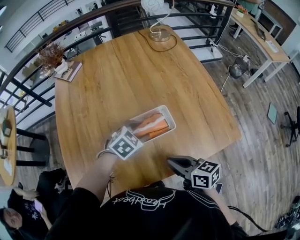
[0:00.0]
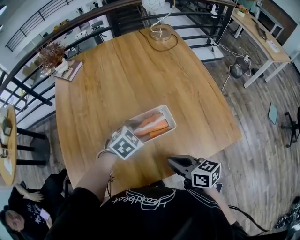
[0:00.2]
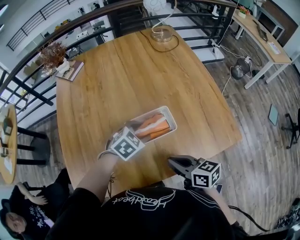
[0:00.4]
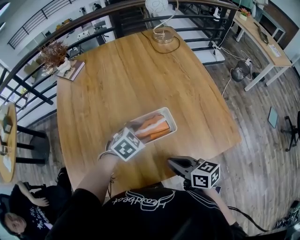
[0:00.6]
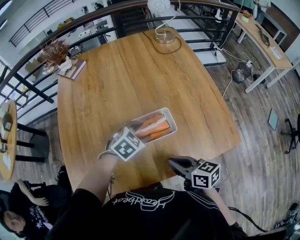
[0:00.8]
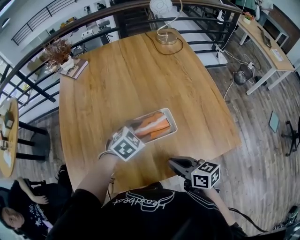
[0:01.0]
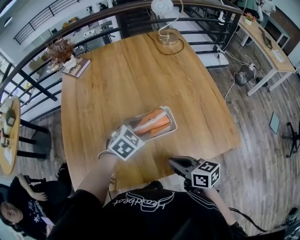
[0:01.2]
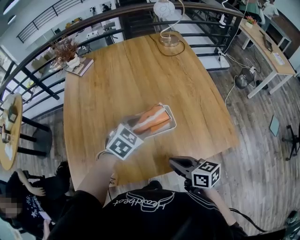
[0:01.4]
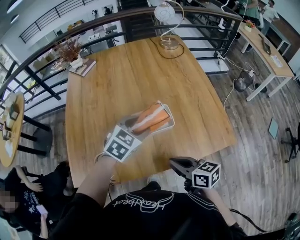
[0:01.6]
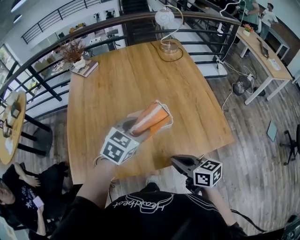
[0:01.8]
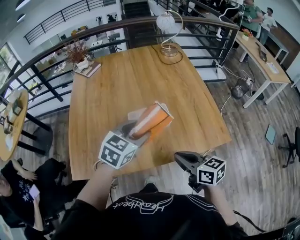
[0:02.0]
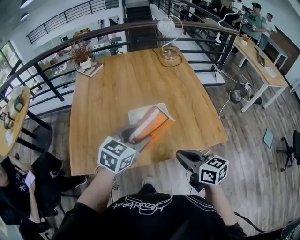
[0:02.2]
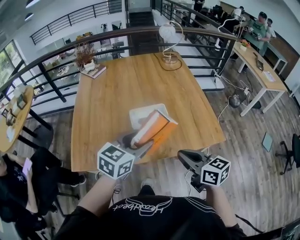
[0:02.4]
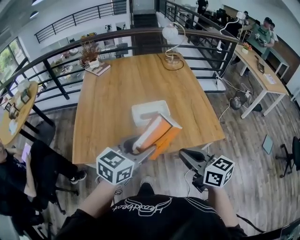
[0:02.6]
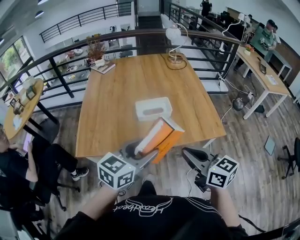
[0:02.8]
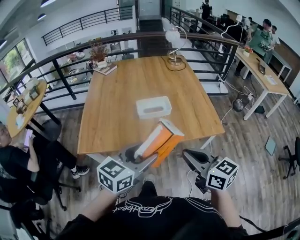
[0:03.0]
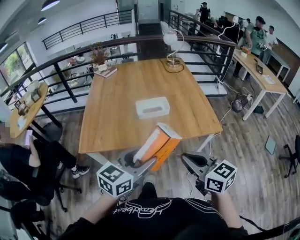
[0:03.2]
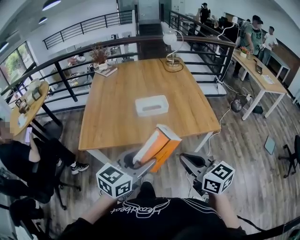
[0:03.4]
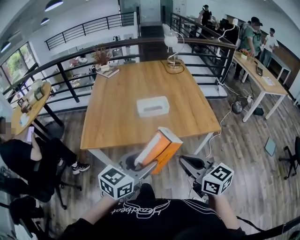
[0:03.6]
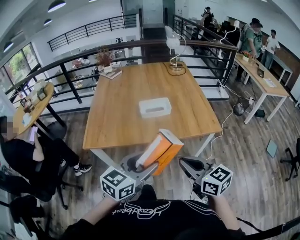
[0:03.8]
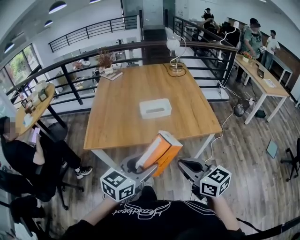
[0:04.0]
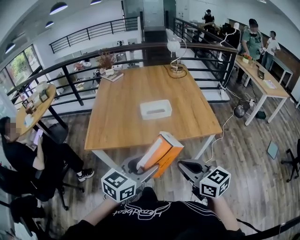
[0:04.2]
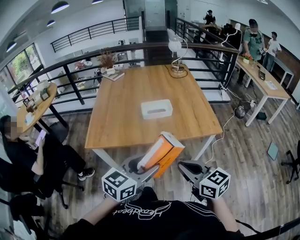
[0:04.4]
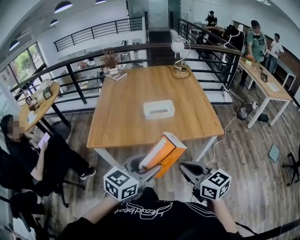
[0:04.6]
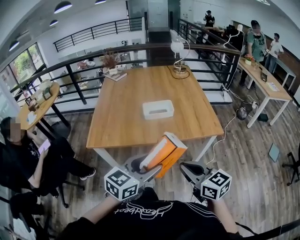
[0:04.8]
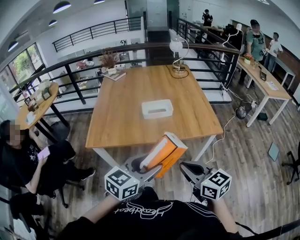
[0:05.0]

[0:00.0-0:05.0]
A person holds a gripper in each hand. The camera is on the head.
0:00.0 to 0:01.6: The left gripper moves upward, about 10 cm; the right gripper travels backward by some 5 cm.
0:01.6 to 0:03.4: The left gripper goes roughly 50 cm backward, and turns by about 30 degrees, while the right gripper moves backward and upward, some 35 cm, and rotates about 30 degrees.
0:03.4 to 0:05.0: Both grippers travel together backward, roughly 5 cm.

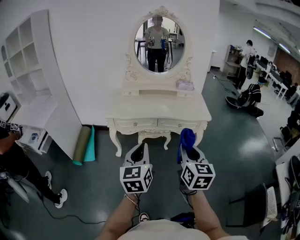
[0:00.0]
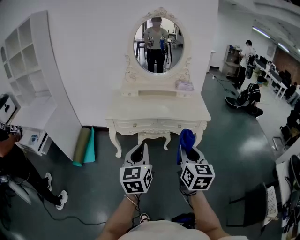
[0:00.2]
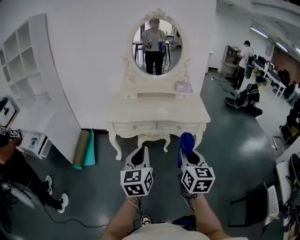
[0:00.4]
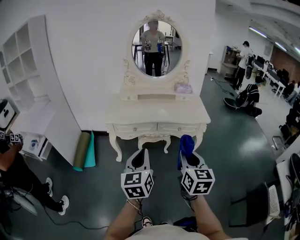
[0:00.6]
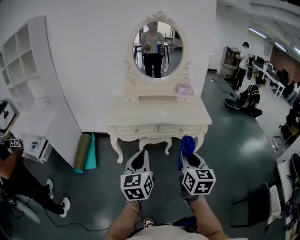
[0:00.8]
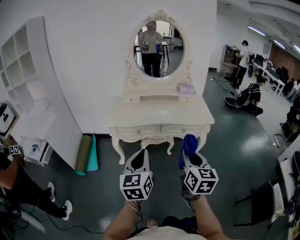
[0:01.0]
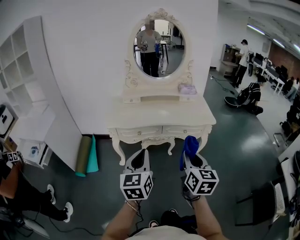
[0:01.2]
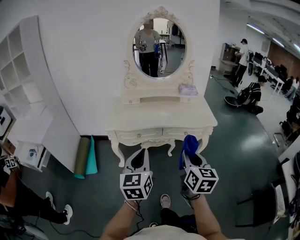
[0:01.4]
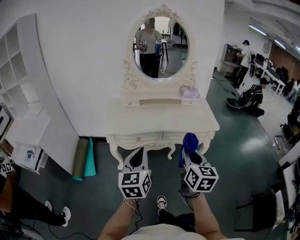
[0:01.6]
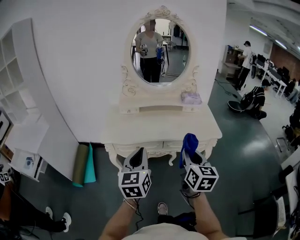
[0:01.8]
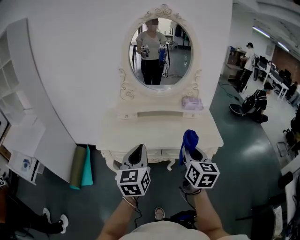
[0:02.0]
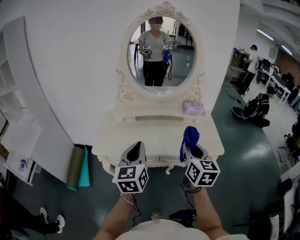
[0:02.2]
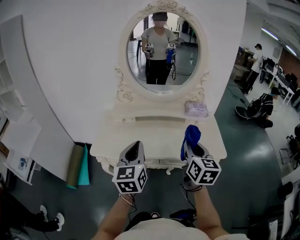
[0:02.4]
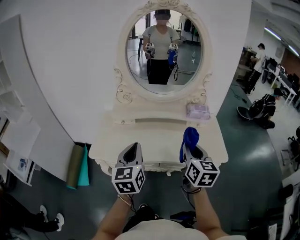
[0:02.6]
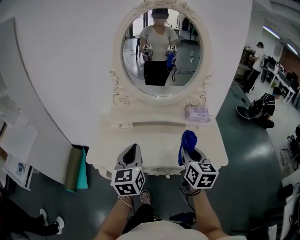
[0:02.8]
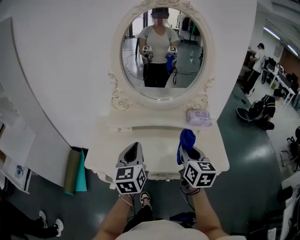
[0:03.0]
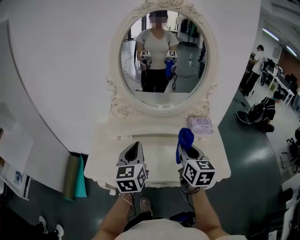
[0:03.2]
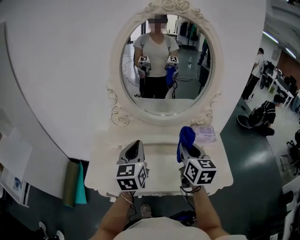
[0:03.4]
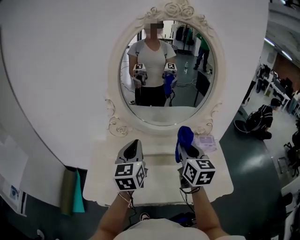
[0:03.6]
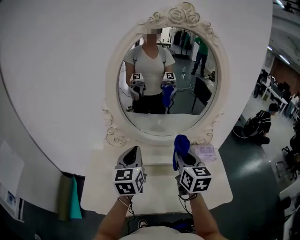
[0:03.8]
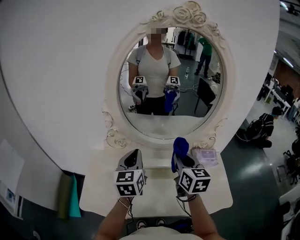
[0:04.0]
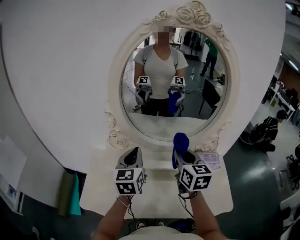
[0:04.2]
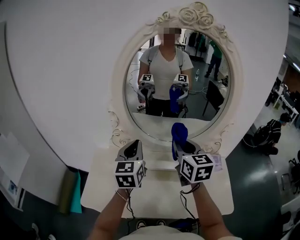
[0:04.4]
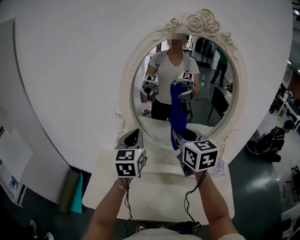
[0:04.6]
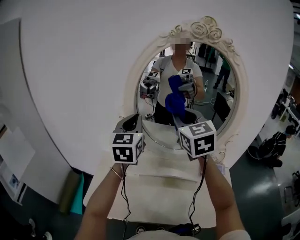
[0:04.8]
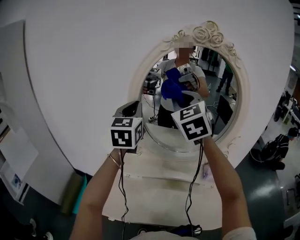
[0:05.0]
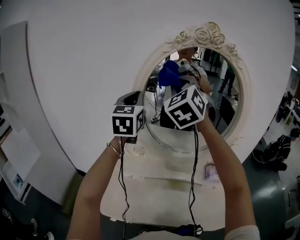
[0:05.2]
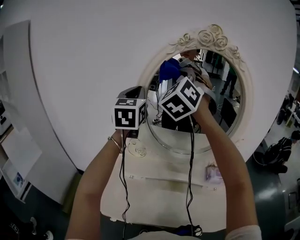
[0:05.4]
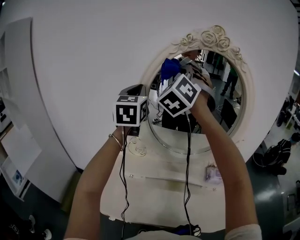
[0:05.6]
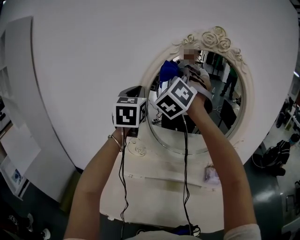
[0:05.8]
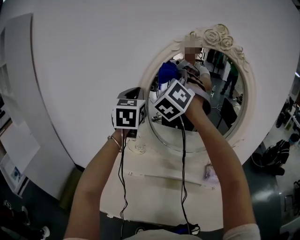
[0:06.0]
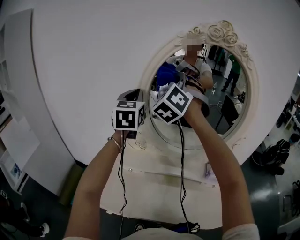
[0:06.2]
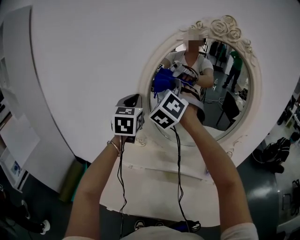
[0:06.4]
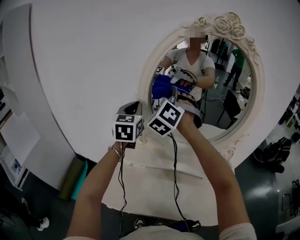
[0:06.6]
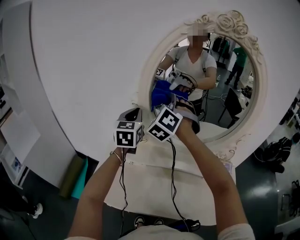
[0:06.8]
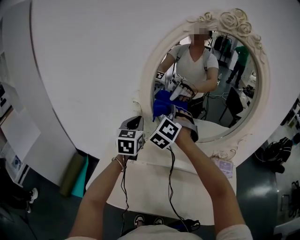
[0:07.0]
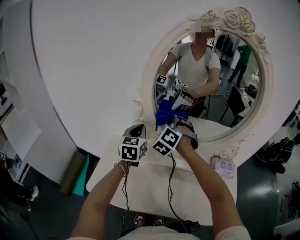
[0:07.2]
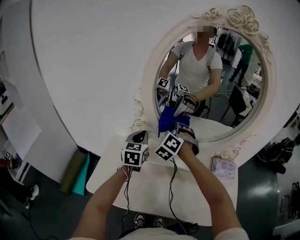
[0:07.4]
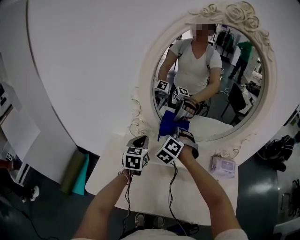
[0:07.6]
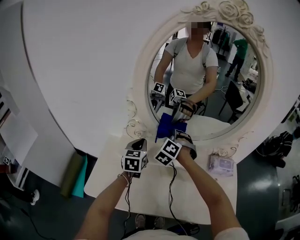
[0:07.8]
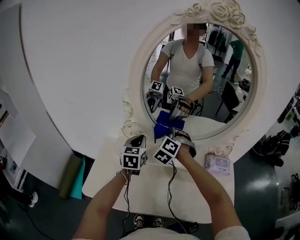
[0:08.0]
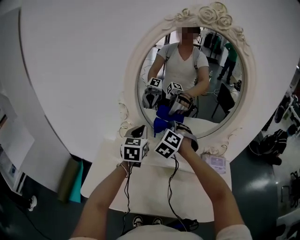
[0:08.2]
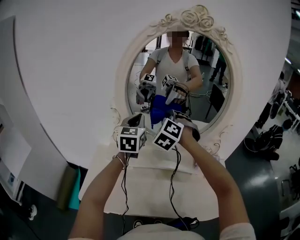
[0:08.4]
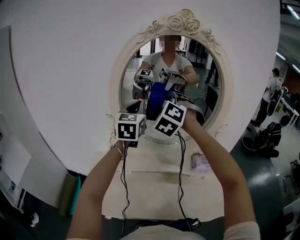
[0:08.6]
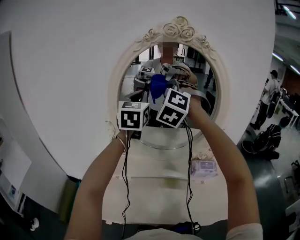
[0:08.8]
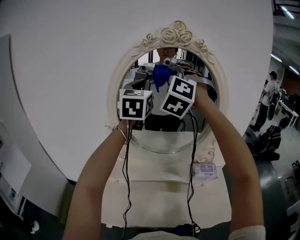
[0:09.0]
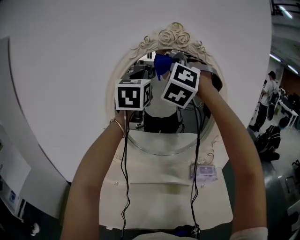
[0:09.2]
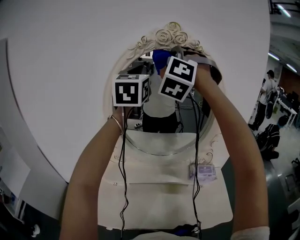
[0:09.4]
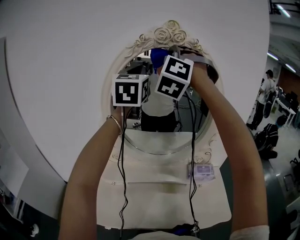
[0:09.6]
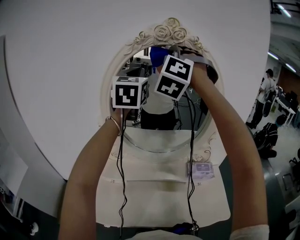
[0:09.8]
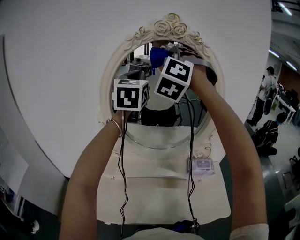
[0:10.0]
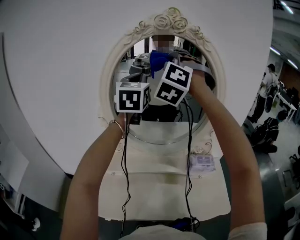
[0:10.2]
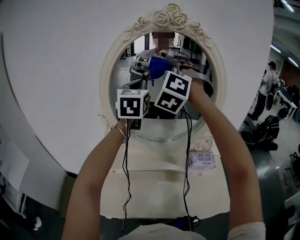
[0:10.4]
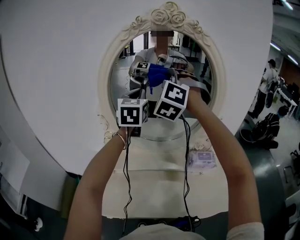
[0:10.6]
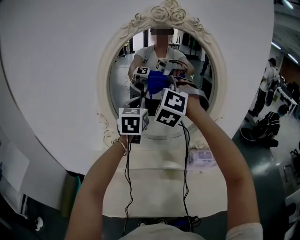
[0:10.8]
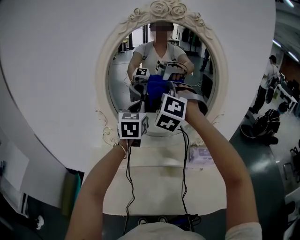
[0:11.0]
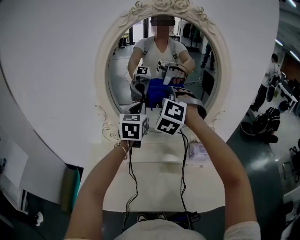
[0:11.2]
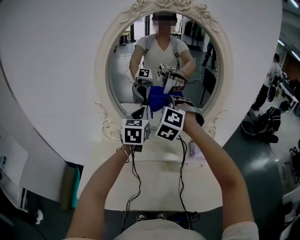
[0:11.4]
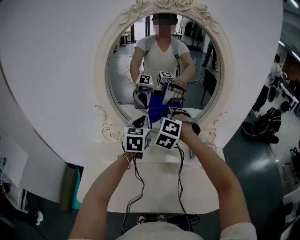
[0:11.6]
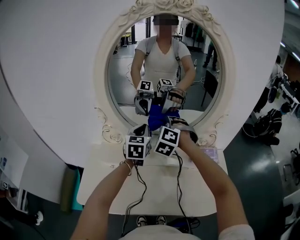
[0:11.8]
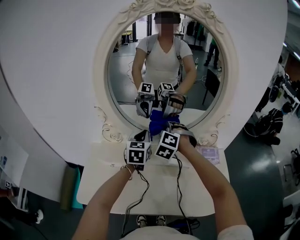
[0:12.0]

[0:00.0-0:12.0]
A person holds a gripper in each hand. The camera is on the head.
0:00.0 to 0:01.6: The right gripper shifts about 10 cm forward, while the left gripper travels forward and to the left by roughly 15 cm.
0:01.6 to 0:03.0: Both grippers travel together forward, some 35 cm.
0:03.0 to 0:04.4: Both grippers travel together forward, some 25 cm.
0:04.4 to 0:06.0: The right gripper heads upward, to the left and forward, covering roughly 30 cm, and rolls counterclockwise, seen from behind, by some 70 degrees. The left gripper goes approximately 25 cm upward, forward and to the left.
0:06.0 to 0:07.6: The two grippers go roughly 35 cm downward. The right gripper tilts its fingers approximately 30 degrees downward. The left gripper changes its angle by approximately 20 degrees.
0:07.6 to 0:09.0: The grippers both shift upward by roughly 40 cm. The right gripper changes its angle by about 30 degrees, while the left gripper rotates roughly 30 degrees.
0:09.0 to 0:10.4: The left gripper heads downward, covering approximately 5 cm. Meanwhile the right gripper travels upward and back again, approximately 10 cm each way.
0:10.4 to 0:12.0: The two grippers go some 35 cm downward. The left gripper changes its angle by some 20 degrees; the right gripper angles its fingers downward, by roughly 30 degrees.

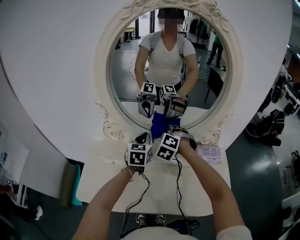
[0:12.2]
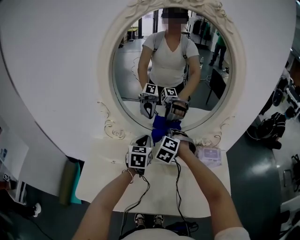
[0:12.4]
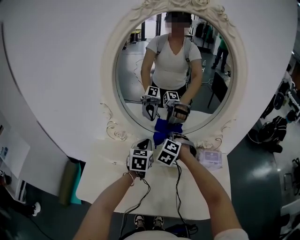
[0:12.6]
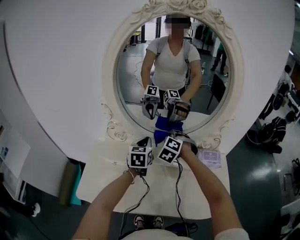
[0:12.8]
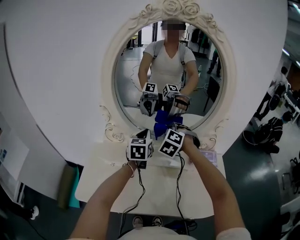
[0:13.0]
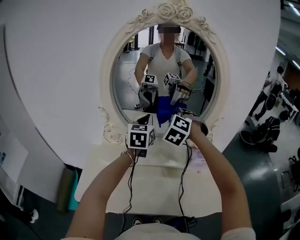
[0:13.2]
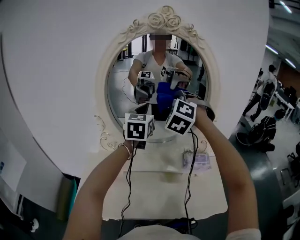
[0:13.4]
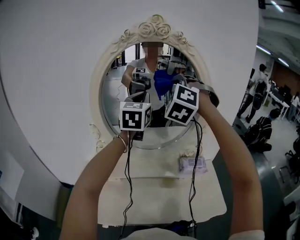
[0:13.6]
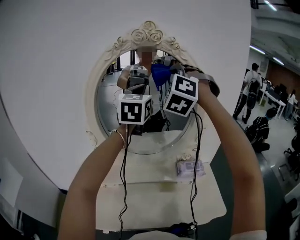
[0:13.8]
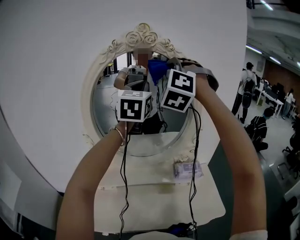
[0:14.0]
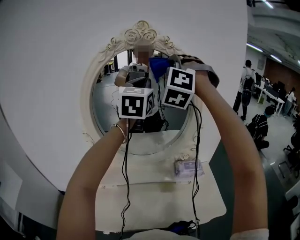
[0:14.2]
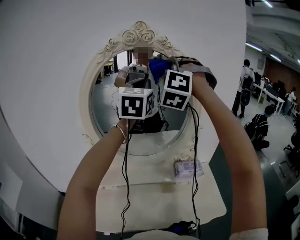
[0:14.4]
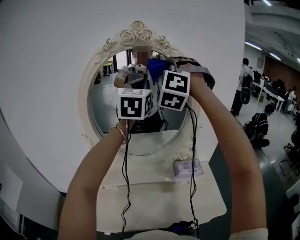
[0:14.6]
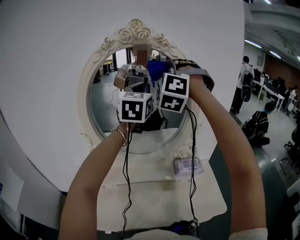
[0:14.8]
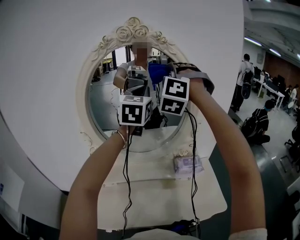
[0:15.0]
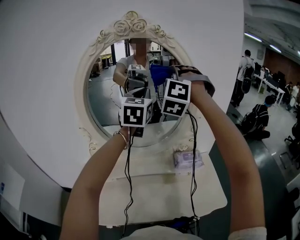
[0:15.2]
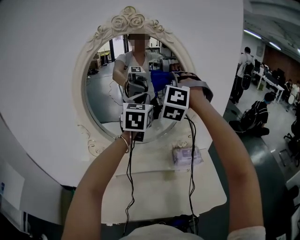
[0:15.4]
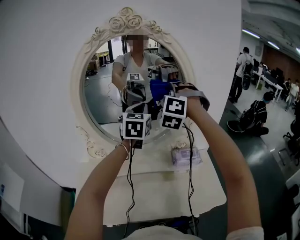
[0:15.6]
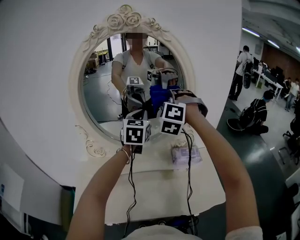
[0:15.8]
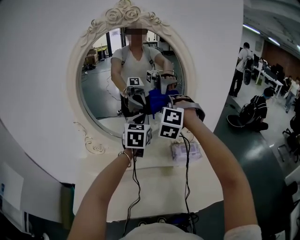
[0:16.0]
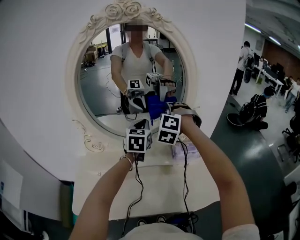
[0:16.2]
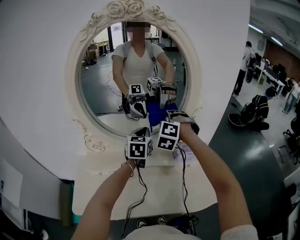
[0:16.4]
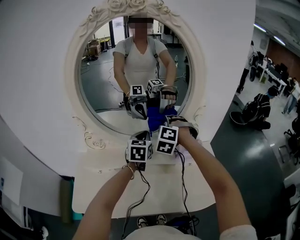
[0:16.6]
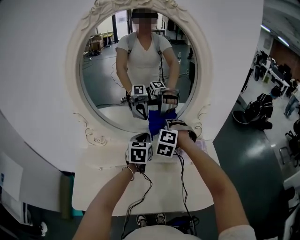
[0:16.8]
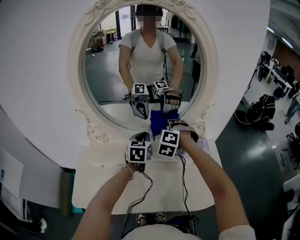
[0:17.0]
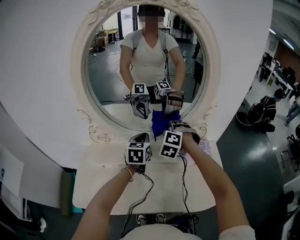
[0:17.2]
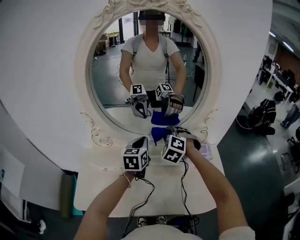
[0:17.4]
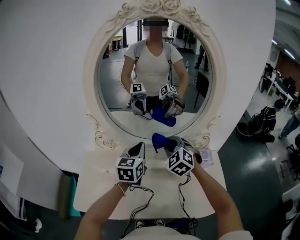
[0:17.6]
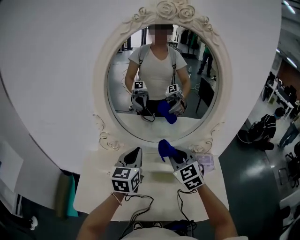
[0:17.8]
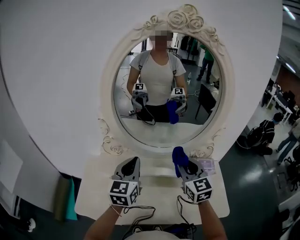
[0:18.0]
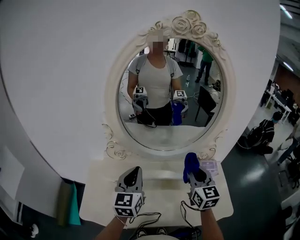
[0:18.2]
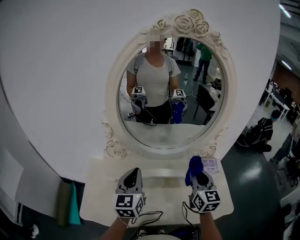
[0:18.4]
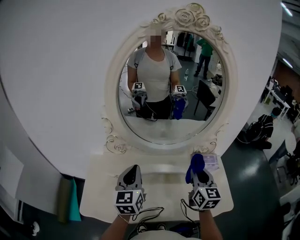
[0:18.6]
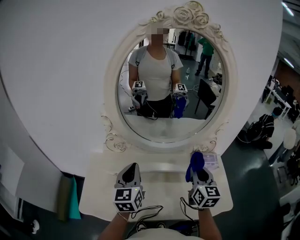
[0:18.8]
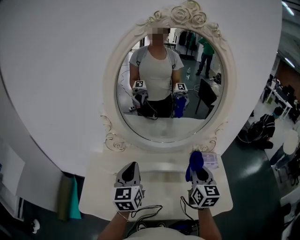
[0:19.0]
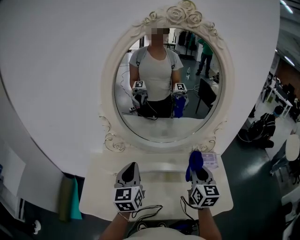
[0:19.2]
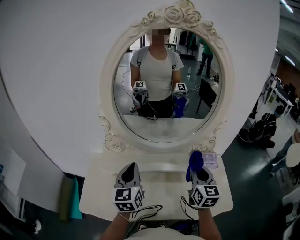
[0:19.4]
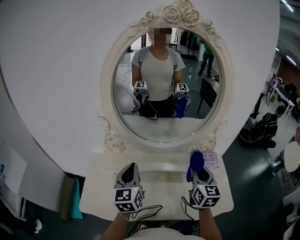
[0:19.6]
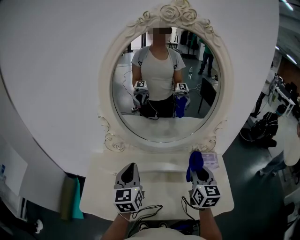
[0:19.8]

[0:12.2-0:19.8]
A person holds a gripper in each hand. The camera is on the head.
0:12.2 to 0:13.8: Both grippers travel together upward, some 40 cm. The left gripper swivels roughly 30 degrees. Meanwhile the right gripper angles its fingers upward, by about 40 degrees.
0:13.8 to 0:15.2: The right gripper changes place by about 5 cm; the left gripper is displaced downward by about 5 cm.
0:15.2 to 0:16.8: The two grippers go about 35 cm downward. The right gripper tilts its fingers roughly 30 degrees downward. The left gripper turns by roughly 30 degrees.
0:16.8 to 0:18.2: The left gripper heads backward, to the left and upward, covering approximately 25 cm, and rotates approximately 20 degrees. The right gripper shifts some 15 cm backward and upward, and rolls clockwise, seen from behind, by about 70 degrees.
0:18.2 to 0:19.8: The right gripper shifts by some 5 cm.
